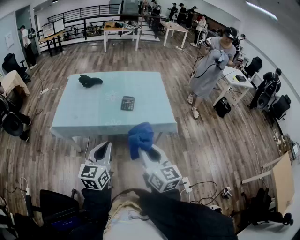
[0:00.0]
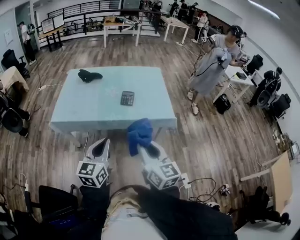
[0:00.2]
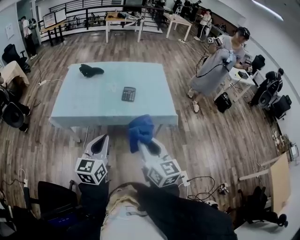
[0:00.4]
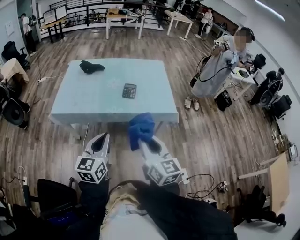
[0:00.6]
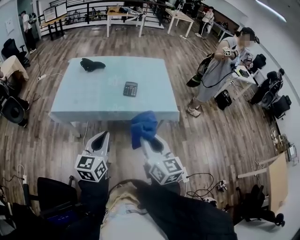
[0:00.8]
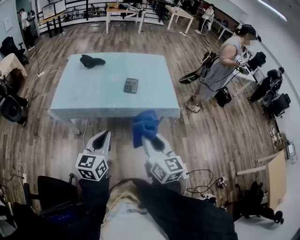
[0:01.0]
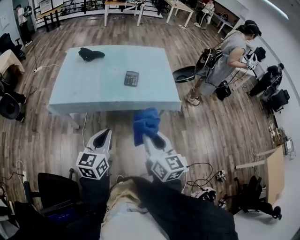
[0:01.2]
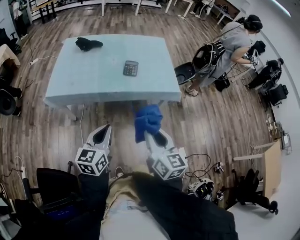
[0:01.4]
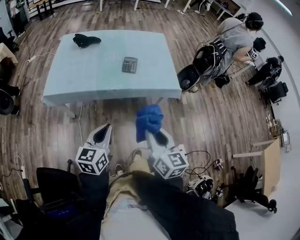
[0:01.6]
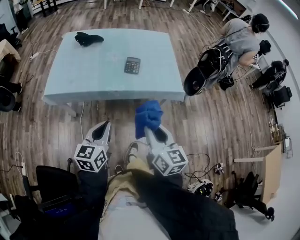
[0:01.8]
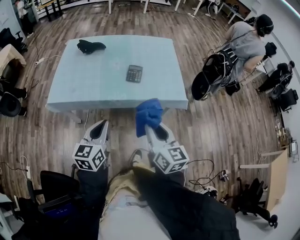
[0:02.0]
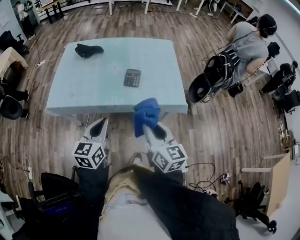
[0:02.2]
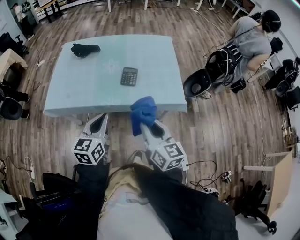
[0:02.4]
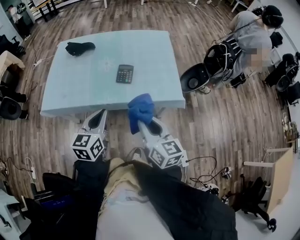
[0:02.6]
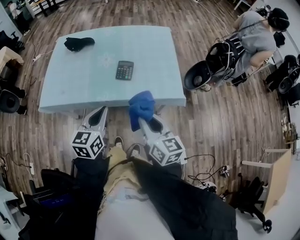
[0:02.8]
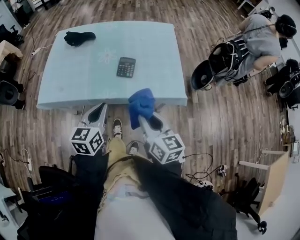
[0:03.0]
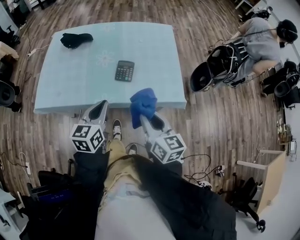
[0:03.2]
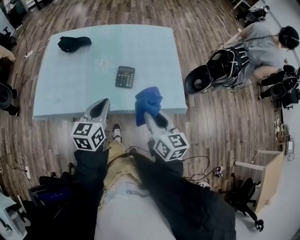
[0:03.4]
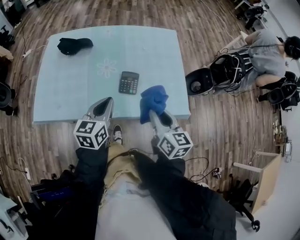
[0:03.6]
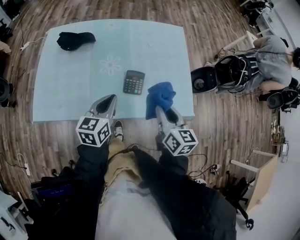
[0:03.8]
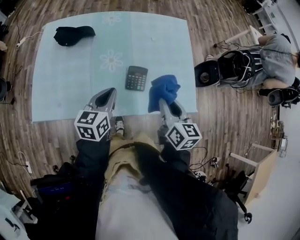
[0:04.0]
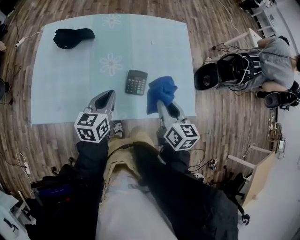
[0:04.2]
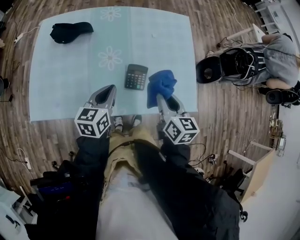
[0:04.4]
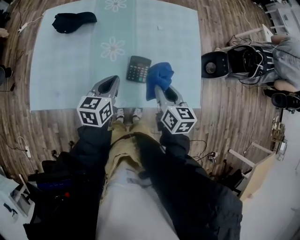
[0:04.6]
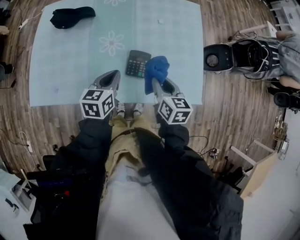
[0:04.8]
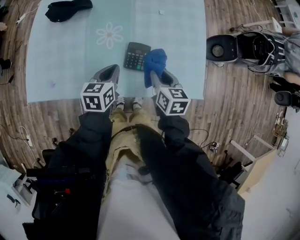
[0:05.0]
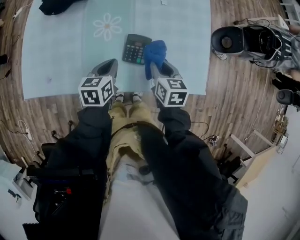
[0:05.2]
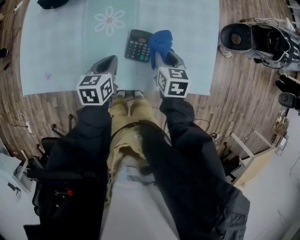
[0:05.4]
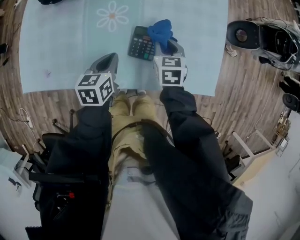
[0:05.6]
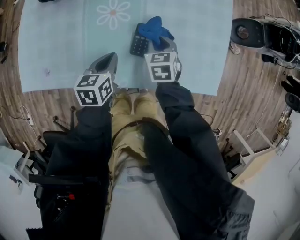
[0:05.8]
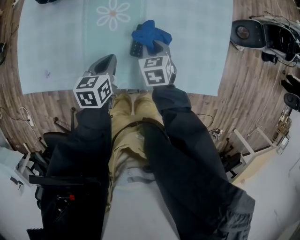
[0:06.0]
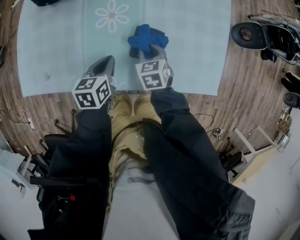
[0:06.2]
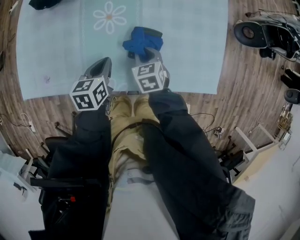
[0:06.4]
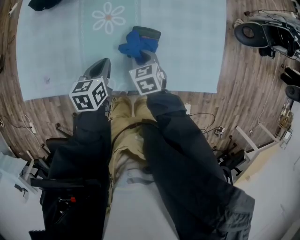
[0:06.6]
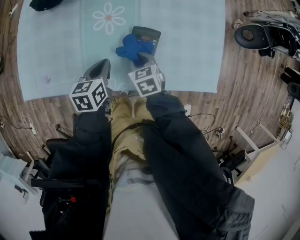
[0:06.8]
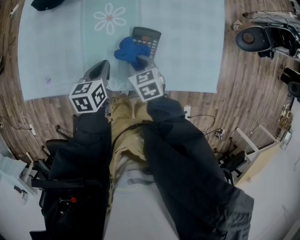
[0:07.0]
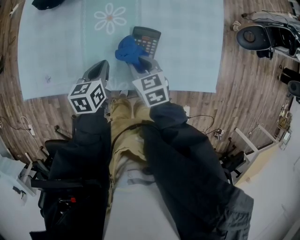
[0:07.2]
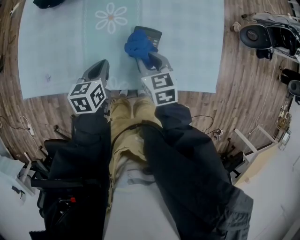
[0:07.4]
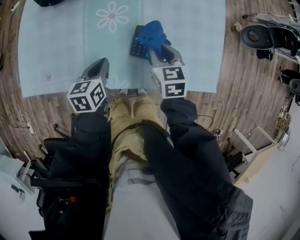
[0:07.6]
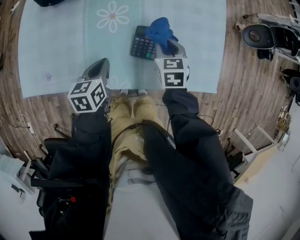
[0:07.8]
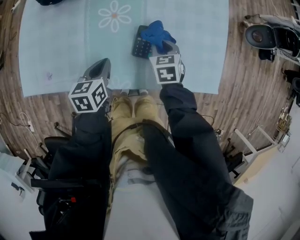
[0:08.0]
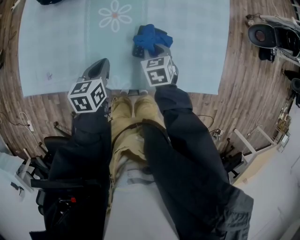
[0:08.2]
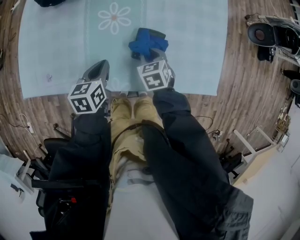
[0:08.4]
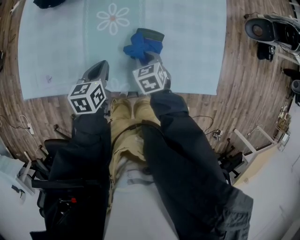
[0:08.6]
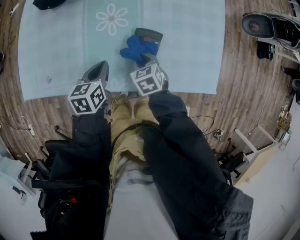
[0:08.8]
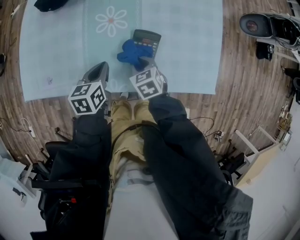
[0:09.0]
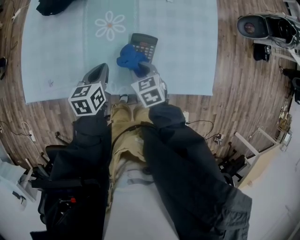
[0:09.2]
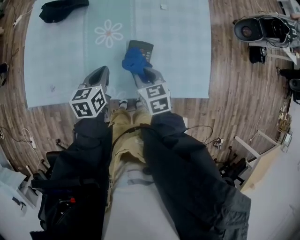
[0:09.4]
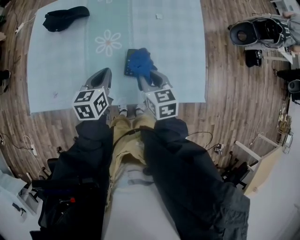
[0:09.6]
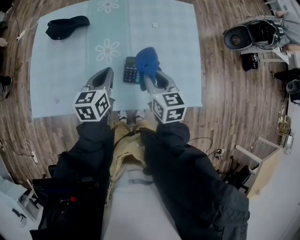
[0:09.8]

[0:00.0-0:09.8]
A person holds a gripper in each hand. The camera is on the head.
0:00.0 to 0:01.4: The right gripper changes place by some 5 cm, while the left gripper heads downward and to the left, covering roughly 10 cm.
0:01.4 to 0:02.8: Both grippers move forward, approximately 20 cm.
0:02.8 to 0:04.2: The two grippers go some 25 cm forward.
0:04.2 to 0:05.6: The left gripper travels downward by roughly 15 cm, and swivels roughly 20 degrees. The right gripper heads downward and forward, covering roughly 25 cm, and changes its angle by some 30 degrees.
0:05.6 to 0:07.0: The right gripper is displaced to the left and backward by roughly 15 cm.
0:07.0 to 0:08.4: The right gripper is displaced to the right by approximately 5 cm.
0:08.4 to 0:09.8: Both grippers travel together upward, roughly 20 cm. The right gripper swivels some 30 degrees.

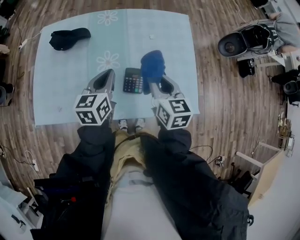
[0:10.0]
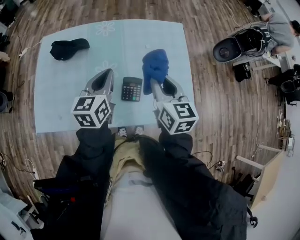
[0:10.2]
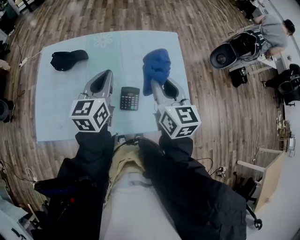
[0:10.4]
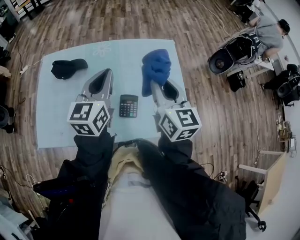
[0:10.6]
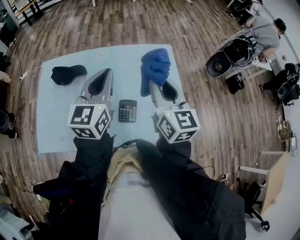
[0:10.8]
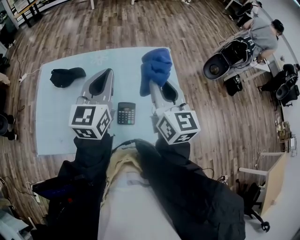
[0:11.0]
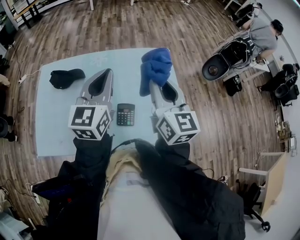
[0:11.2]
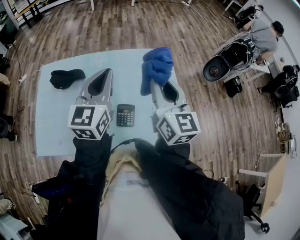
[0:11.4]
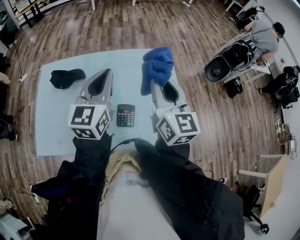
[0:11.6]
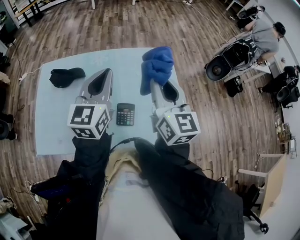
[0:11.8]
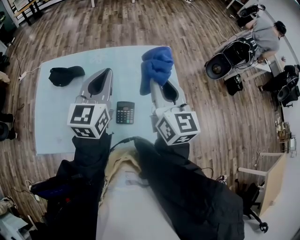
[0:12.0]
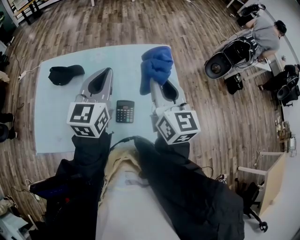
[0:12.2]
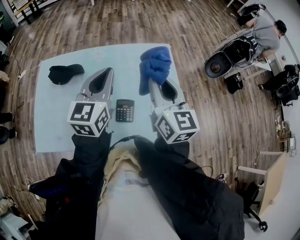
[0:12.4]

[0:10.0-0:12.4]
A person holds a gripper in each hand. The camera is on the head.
0:10.0 to 0:11.2: Both grippers move upward, some 20 cm. The right gripper changes its angle by some 30 degrees; the left gripper swivels about 30 degrees.
0:11.2 to 0:12.4: The grippers make only small movements.

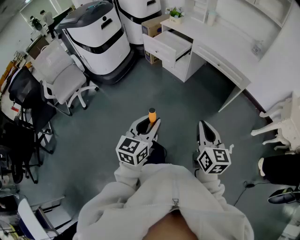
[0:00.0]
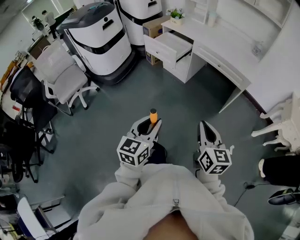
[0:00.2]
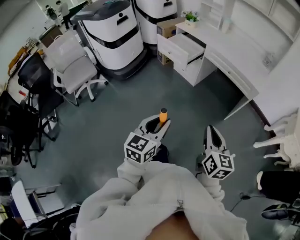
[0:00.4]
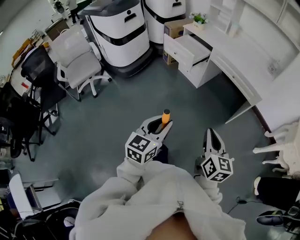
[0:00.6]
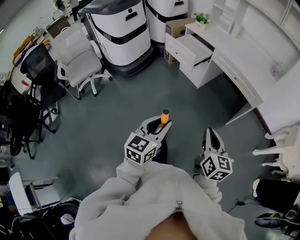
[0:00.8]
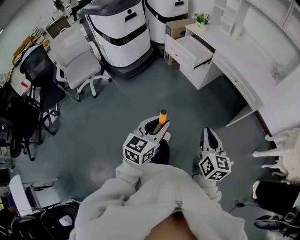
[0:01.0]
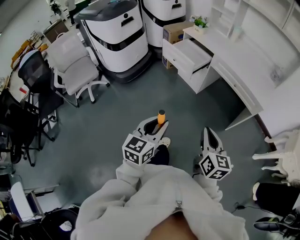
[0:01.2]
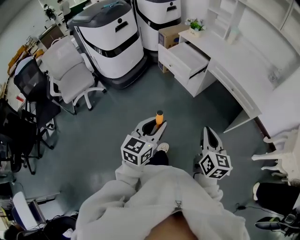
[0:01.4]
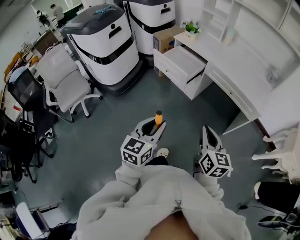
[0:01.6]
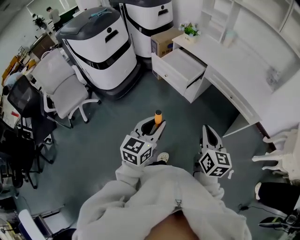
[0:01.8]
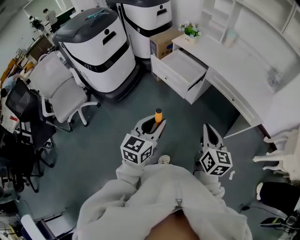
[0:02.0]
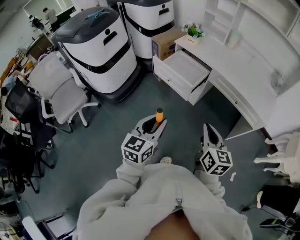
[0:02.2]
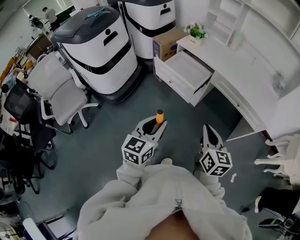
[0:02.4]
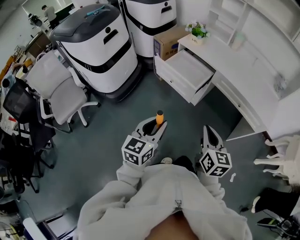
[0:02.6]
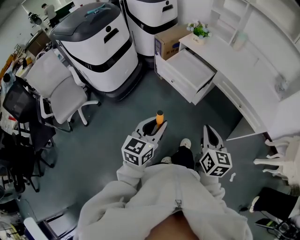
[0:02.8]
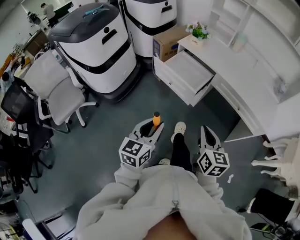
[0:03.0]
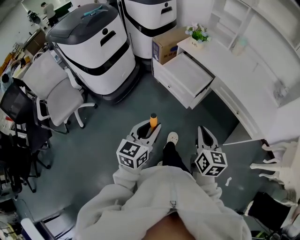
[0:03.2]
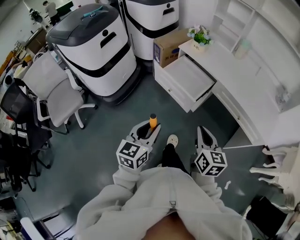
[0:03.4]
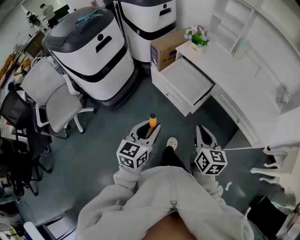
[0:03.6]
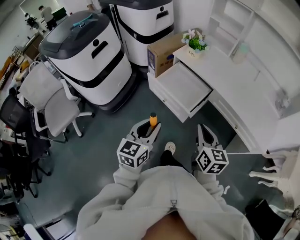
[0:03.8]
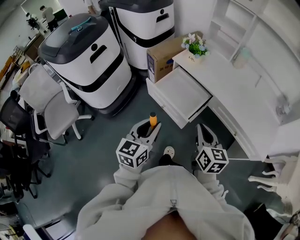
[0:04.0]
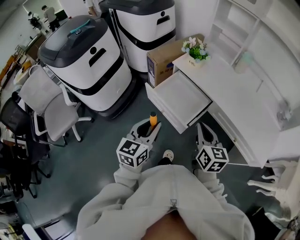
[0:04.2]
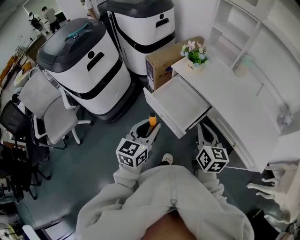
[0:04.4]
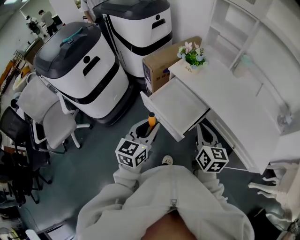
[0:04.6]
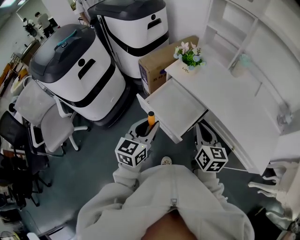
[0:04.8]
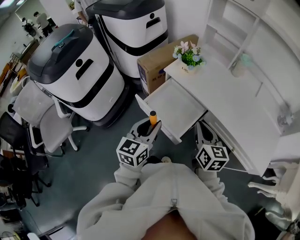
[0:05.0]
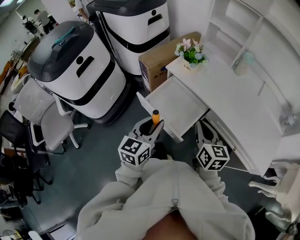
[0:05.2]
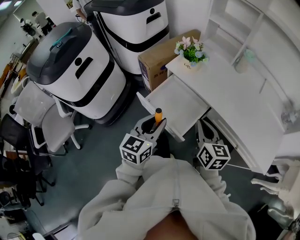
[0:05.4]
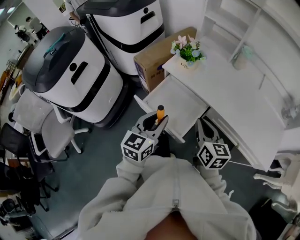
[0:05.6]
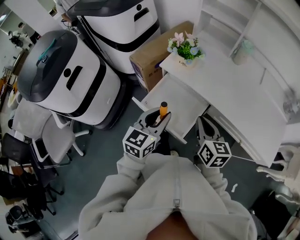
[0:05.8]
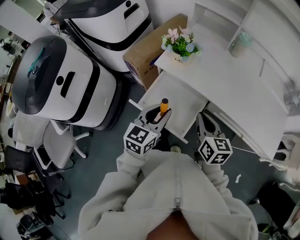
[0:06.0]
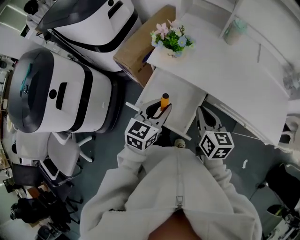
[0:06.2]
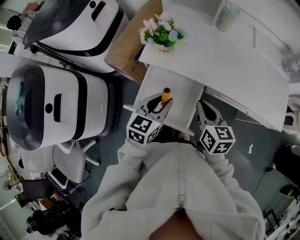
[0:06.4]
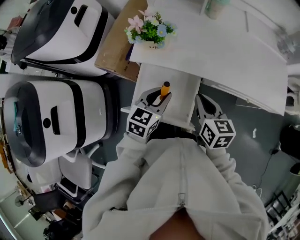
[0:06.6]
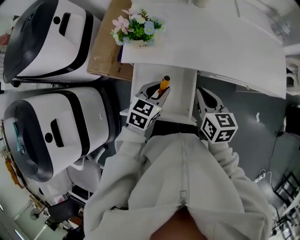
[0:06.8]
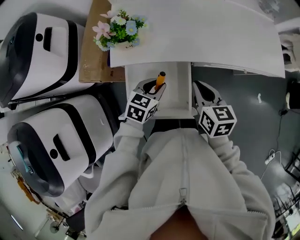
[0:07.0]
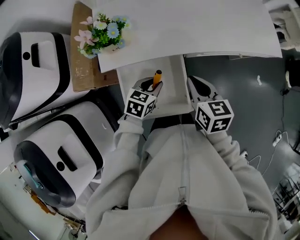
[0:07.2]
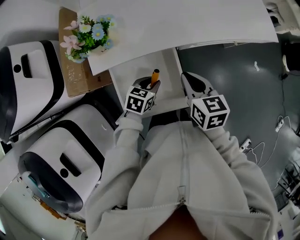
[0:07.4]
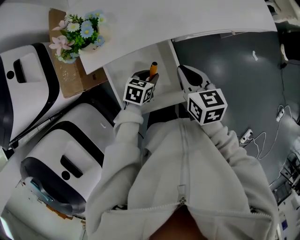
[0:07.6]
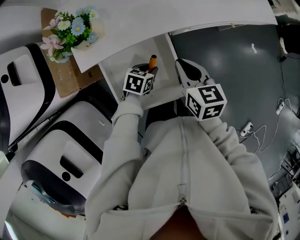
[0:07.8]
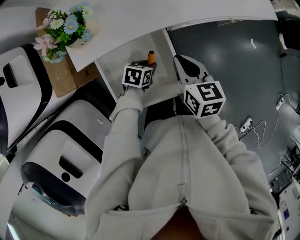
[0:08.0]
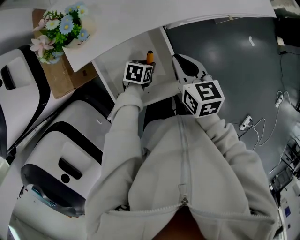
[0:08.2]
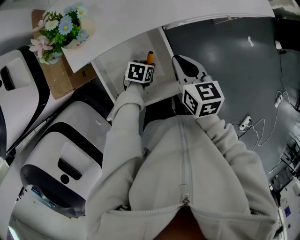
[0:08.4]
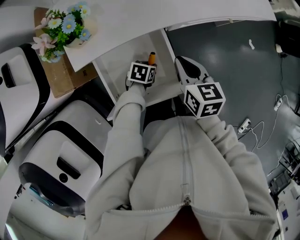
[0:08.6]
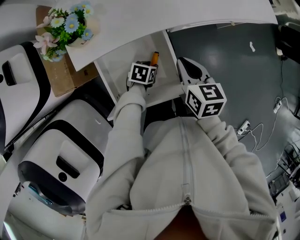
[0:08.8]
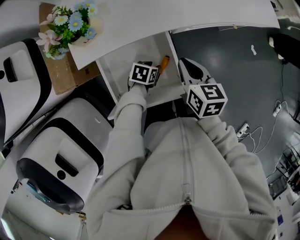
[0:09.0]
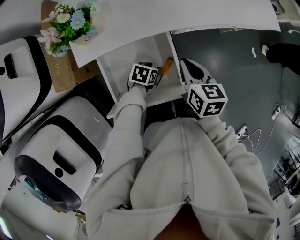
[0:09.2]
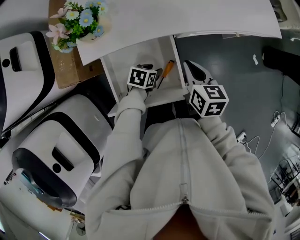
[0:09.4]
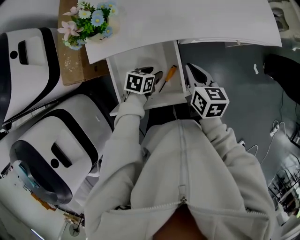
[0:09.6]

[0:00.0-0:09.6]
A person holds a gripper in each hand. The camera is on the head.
0:00.0 to 0:01.6: Both grippers move forward, about 20 cm.
0:01.6 to 0:03.2: The grippers both shift forward and to the left by roughly 20 cm.
0:03.2 to 0:04.8: The grippers both shift forward by approximately 30 cm.
0:04.8 to 0:06.4: The right gripper shifts roughly 10 cm forward and downward, and swivels some 20 degrees, while the left gripper goes about 20 cm forward and downward, and swivels about 30 degrees.
0:06.4 to 0:08.0: The right gripper heads downward, covering roughly 10 cm, and turns by roughly 30 degrees. The left gripper is displaced downward by some 25 cm, and turns by approximately 60 degrees.
0:08.0 to 0:09.6: The left gripper opens.

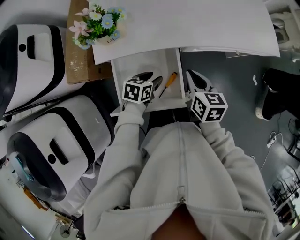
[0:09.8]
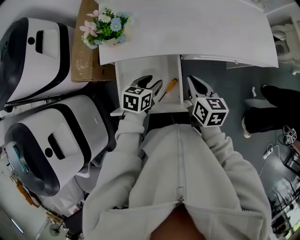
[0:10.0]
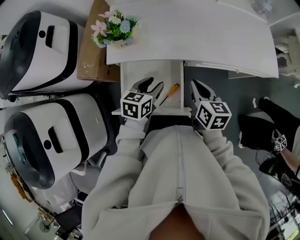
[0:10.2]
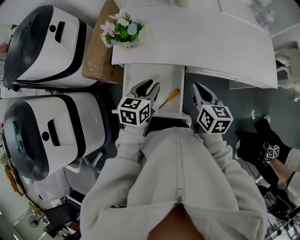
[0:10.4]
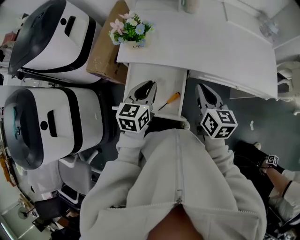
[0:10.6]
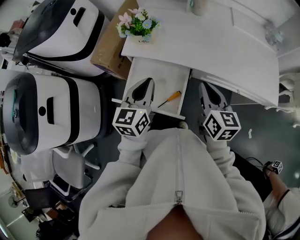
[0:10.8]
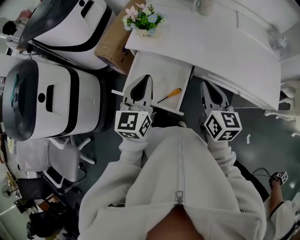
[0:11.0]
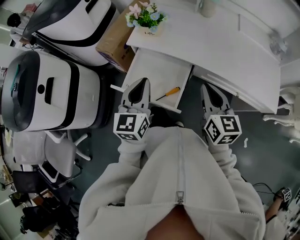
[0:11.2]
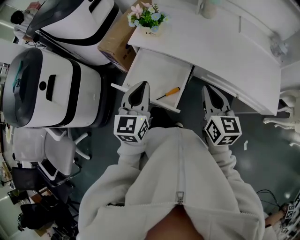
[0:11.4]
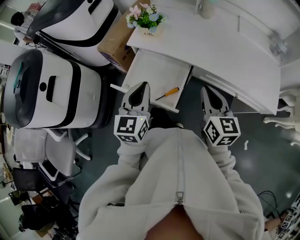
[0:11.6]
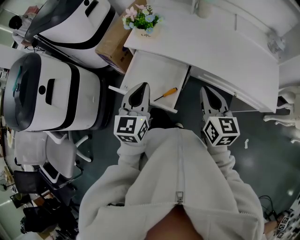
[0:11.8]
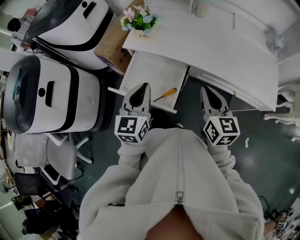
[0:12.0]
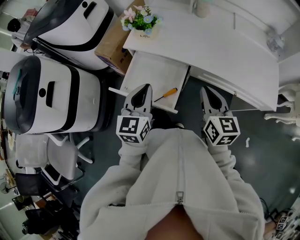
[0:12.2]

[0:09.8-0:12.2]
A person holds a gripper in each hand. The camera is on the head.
0:09.8 to 0:11.0: The left gripper is displaced upward by some 25 cm, angles its fingers upward, by roughly 40 degrees, and closes its fingers. The right gripper goes approximately 15 cm upward, and changes its angle by about 30 degrees.
0:11.0 to 0:12.2: The left gripper ends up some 5 cm from where it was.
